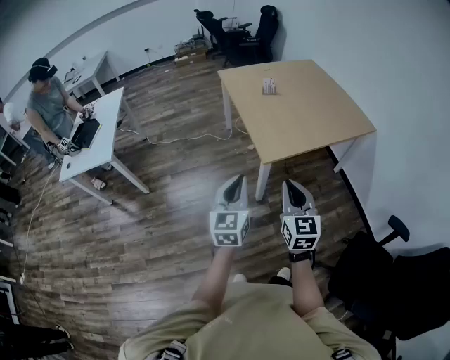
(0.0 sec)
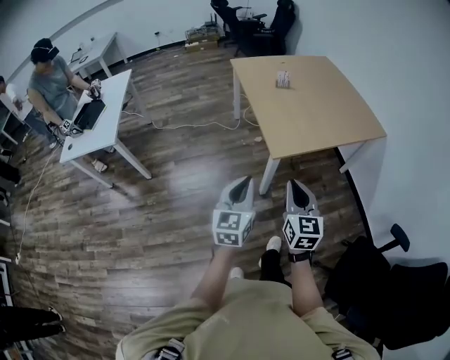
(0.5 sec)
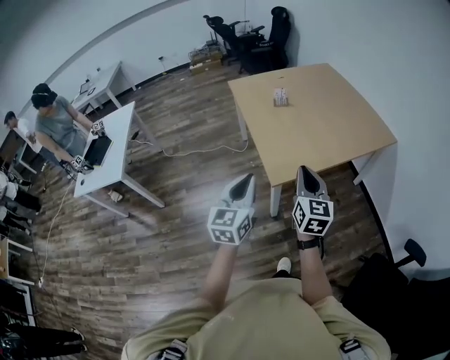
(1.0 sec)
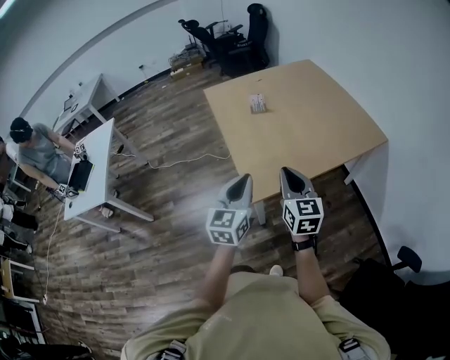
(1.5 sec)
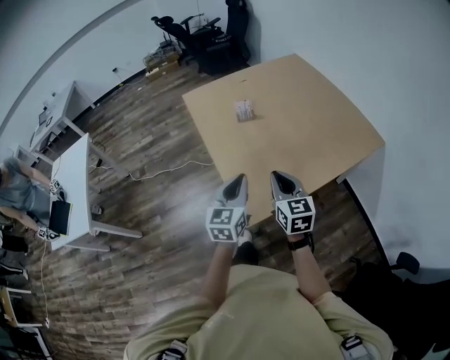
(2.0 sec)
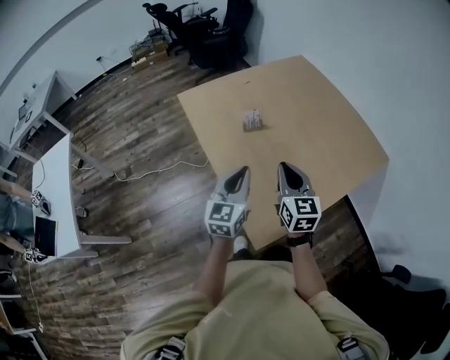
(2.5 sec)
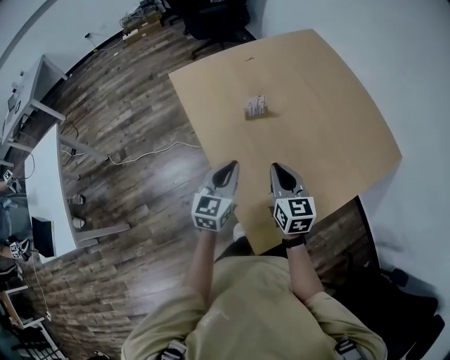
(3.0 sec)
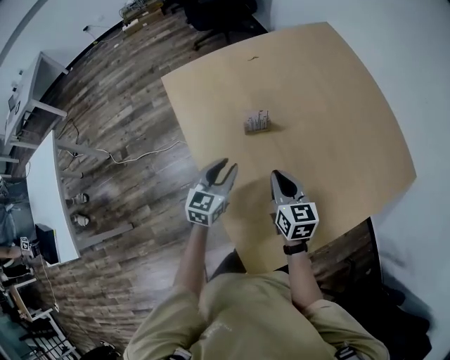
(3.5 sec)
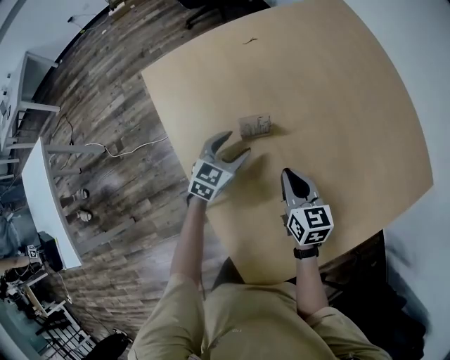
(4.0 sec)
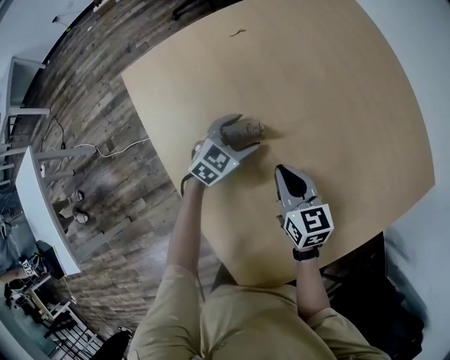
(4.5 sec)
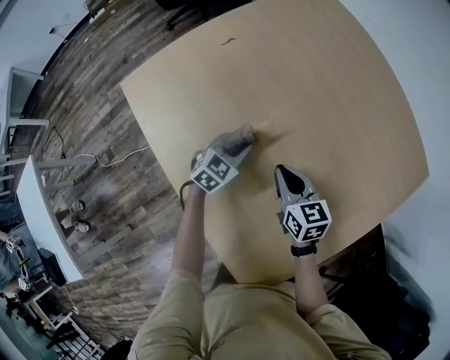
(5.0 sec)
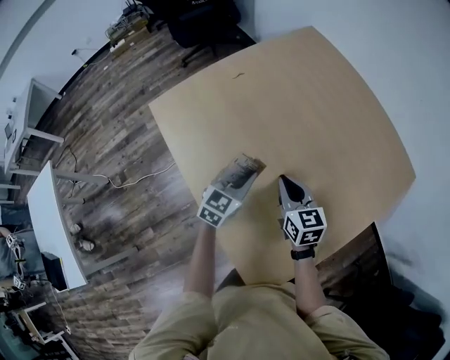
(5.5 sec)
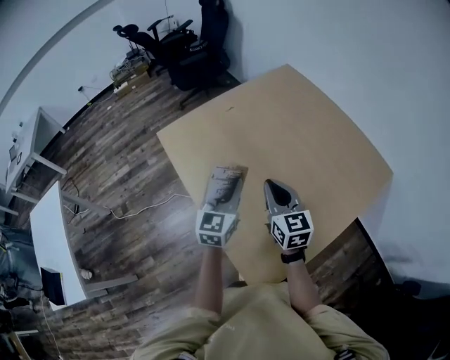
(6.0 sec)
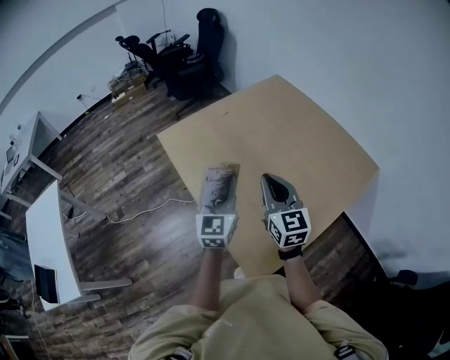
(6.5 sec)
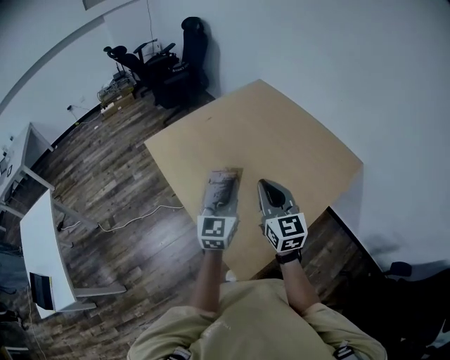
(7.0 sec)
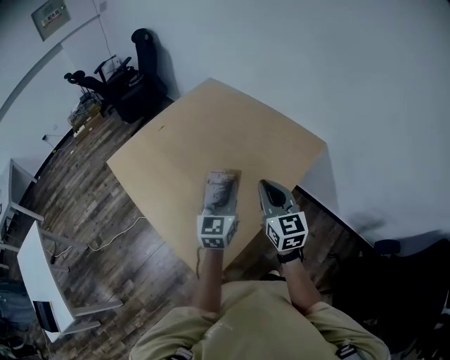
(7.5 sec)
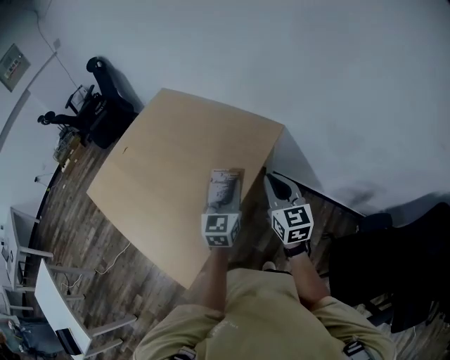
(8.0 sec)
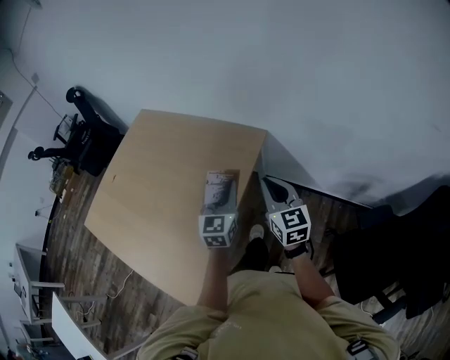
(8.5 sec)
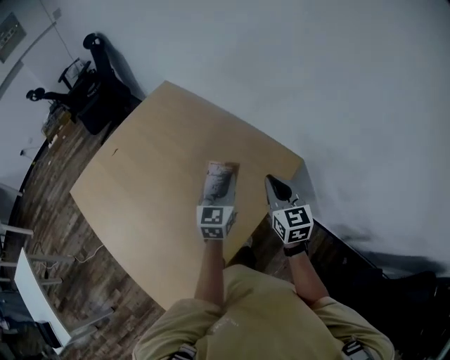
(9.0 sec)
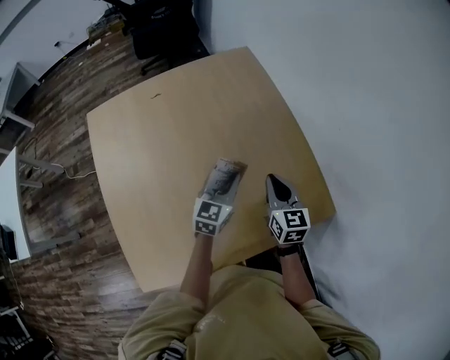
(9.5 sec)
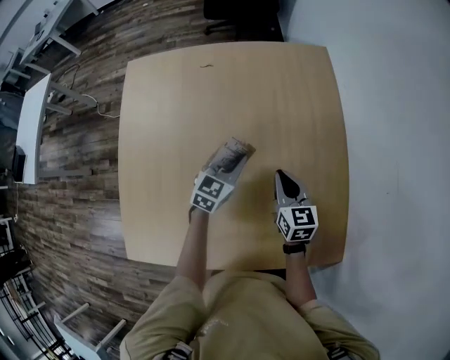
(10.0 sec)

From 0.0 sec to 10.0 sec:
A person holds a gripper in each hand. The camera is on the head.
From 0.0 sec to 2.0 sec: The two grippers travel together, forward, some 50 cm.
From 2.0 sec to 4.0 sec: The two grippers travel together, forward, roughly 50 cm. The grippers both shift downward by roughly 30 cm. The left gripper swivels about 30 degrees, and opens its fingers. Meanwhile the right gripper swivels roughly 20 degrees.
From 4.0 sec to 6.0 sec: The two grippers go some 30 cm upward and backward. The left gripper changes its angle by approximately 20 degrees, and closes. Meanwhile the right gripper turns by roughly 20 degrees.
From 6.0 sec to 8.0 sec: The pair of grippers is taken to the right, roughly 60 cm. The right gripper changes its angle by some 30 degrees.
From 8.0 sec to 10.0 sec: The two grippers travel together, some 50 cm. The right gripper rotates approximately 50 degrees; the left gripper rotates roughly 40 degrees.

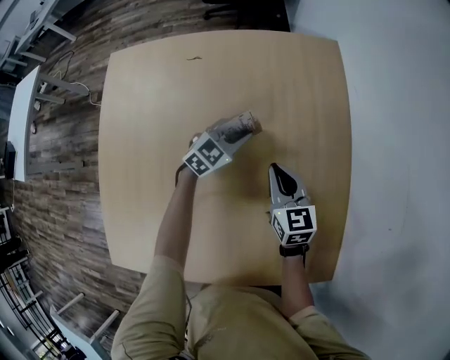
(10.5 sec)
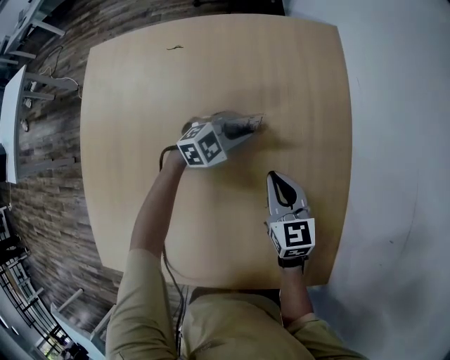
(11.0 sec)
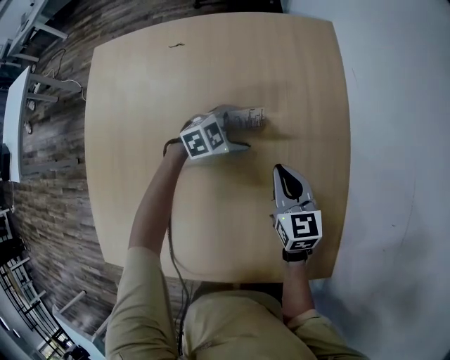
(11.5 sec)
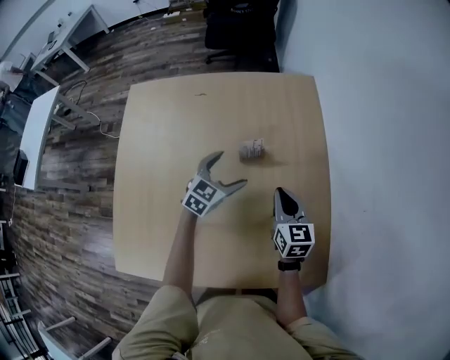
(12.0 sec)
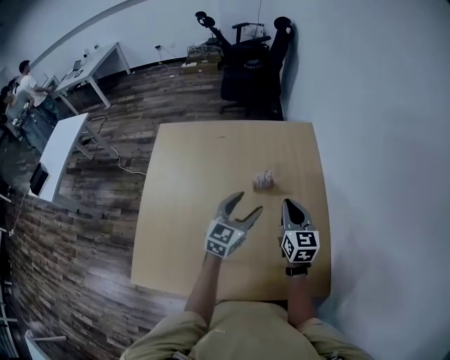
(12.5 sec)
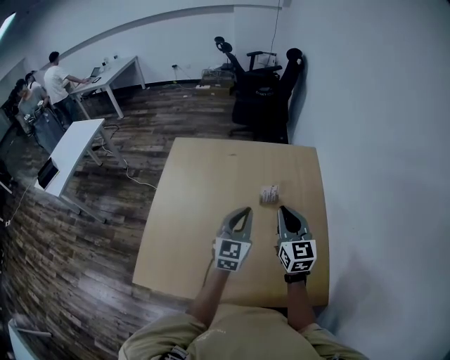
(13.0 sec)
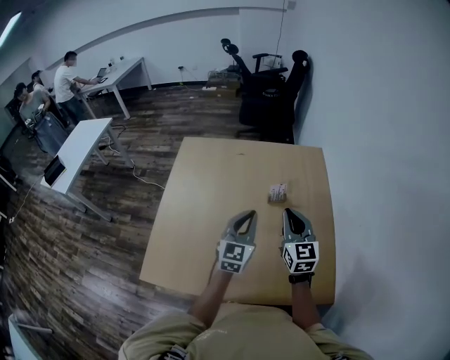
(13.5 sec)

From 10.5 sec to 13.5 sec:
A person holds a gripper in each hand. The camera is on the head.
From 10.5 sec to 12.0 sec: The right gripper goes approximately 10 cm to the right and upward. The left gripper heads upward and backward, covering approximately 10 cm, and opens its fingers.
From 12.0 sec to 13.5 sec: Both grippers travel together upward and backward, some 30 cm. The right gripper rotates roughly 20 degrees, while the left gripper changes its angle by some 30 degrees, and closes up.

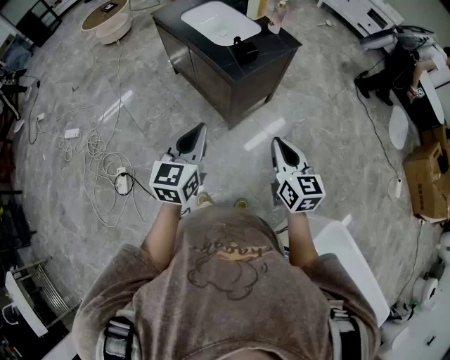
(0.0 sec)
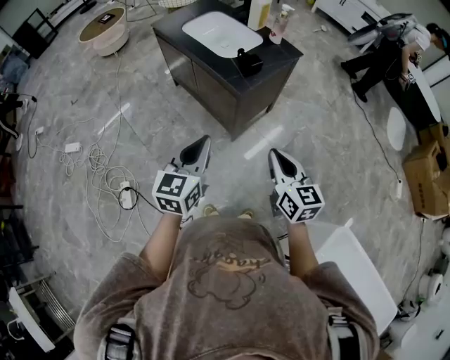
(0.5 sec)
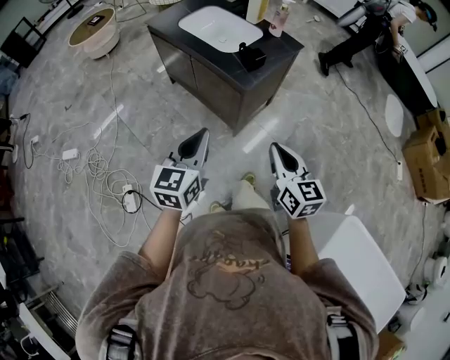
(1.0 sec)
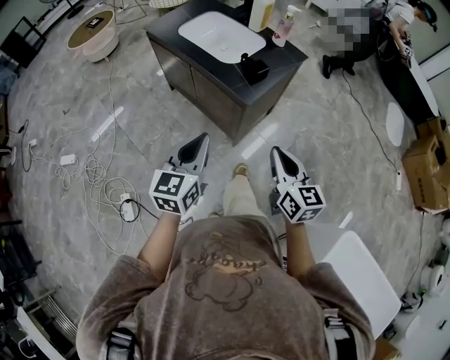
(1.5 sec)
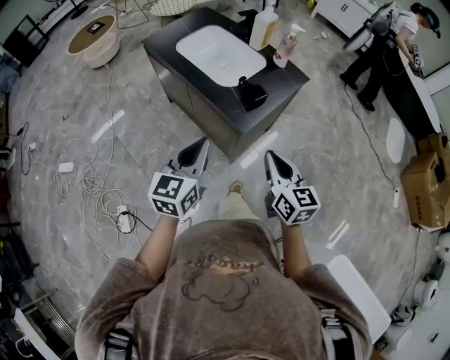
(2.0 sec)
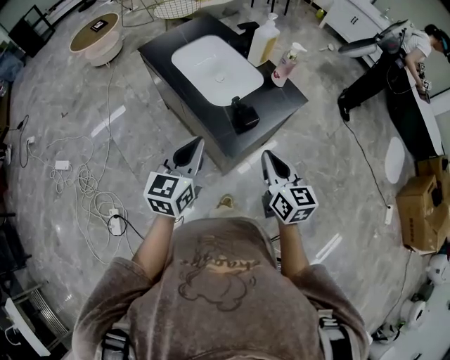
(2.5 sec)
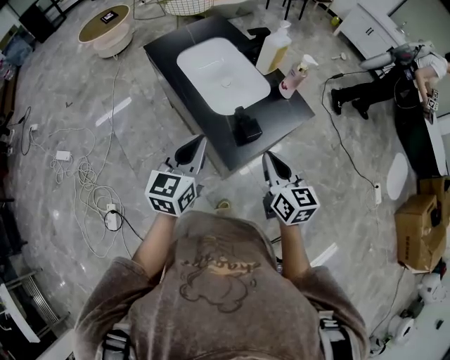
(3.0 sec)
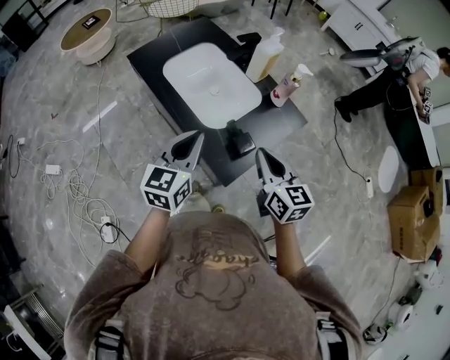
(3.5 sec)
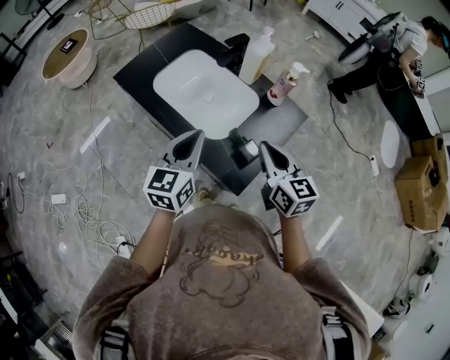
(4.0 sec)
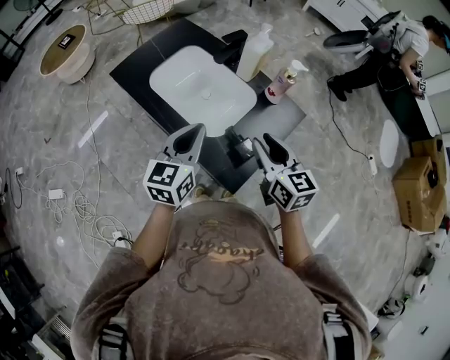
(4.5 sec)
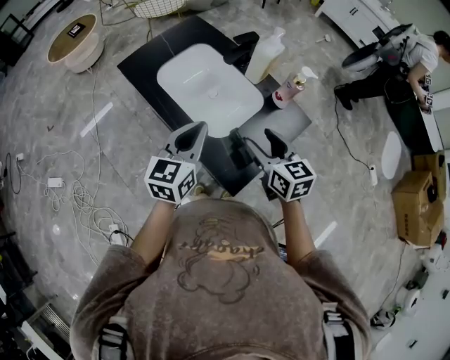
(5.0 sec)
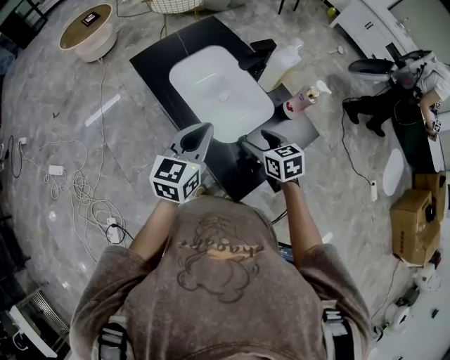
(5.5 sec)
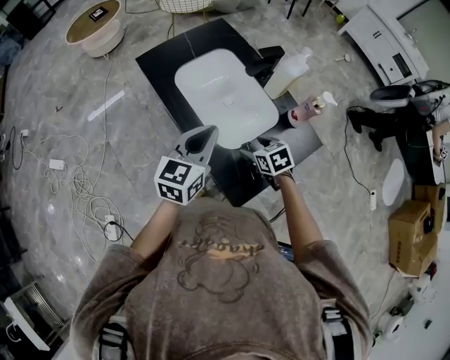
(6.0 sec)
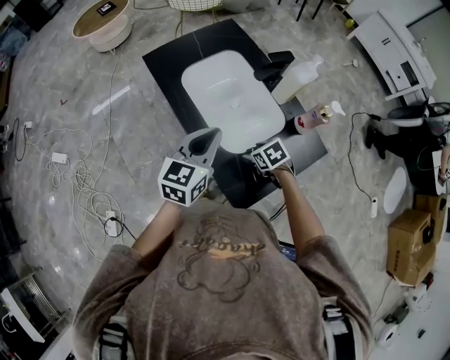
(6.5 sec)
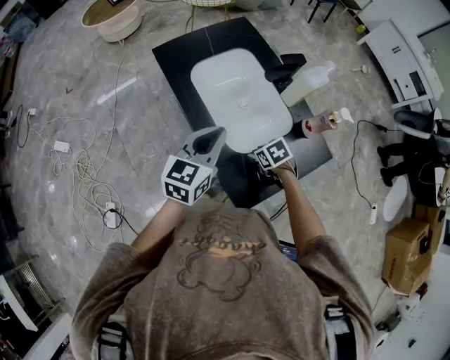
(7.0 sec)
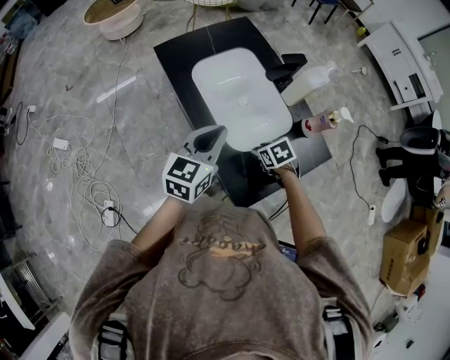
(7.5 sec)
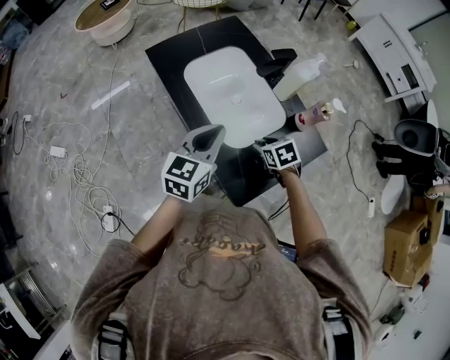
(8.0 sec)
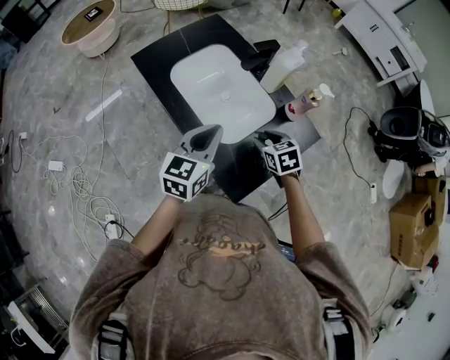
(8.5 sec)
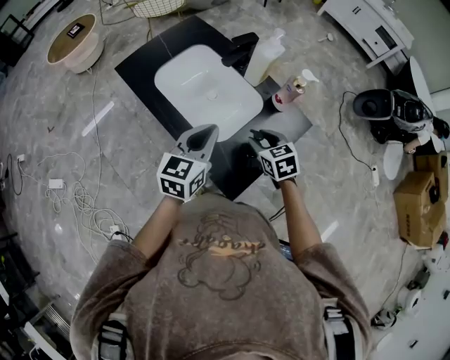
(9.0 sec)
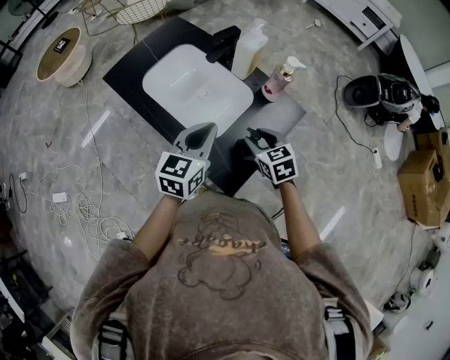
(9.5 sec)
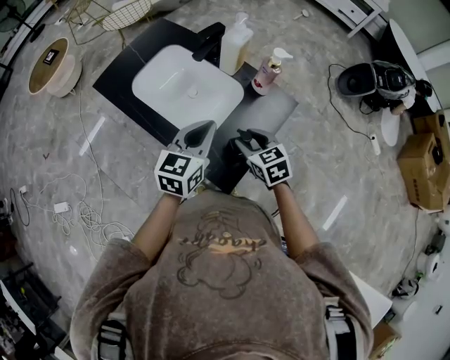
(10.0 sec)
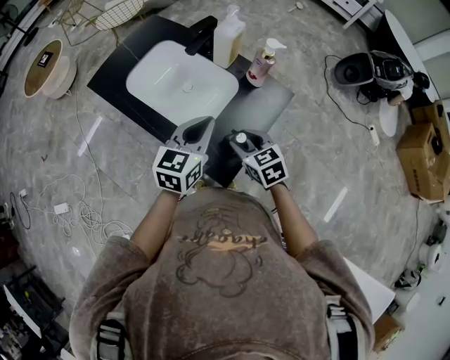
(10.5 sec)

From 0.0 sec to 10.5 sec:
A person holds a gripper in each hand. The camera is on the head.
From 0.0 sec to 2.0 sec: The left gripper shifts approximately 20 cm forward. The right gripper goes some 20 cm forward and to the left.
From 2.0 sec to 4.0 sec: Both grippers move forward, some 30 cm.
From 4.0 sec to 6.5 sec: The right gripper is displaced downward by about 25 cm, angles its fingers downward, by some 50 degrees, and opens up. Meanwhile the left gripper shifts by roughly 5 cm.
From 6.5 sec to 8.5 sec: The right gripper heads upward, covering some 10 cm, and swivels about 20 degrees.
From 8.5 sec to 10.5 sec: The left gripper moves to the right, approximately 10 cm. The right gripper goes roughly 10 cm backward.

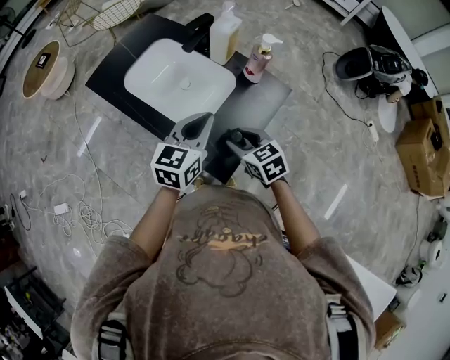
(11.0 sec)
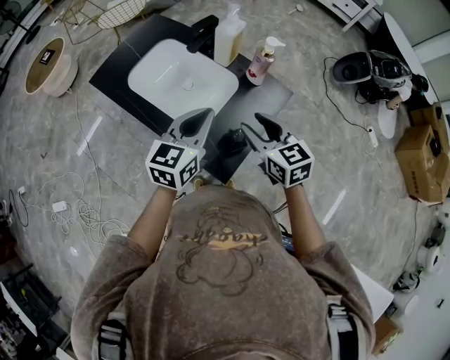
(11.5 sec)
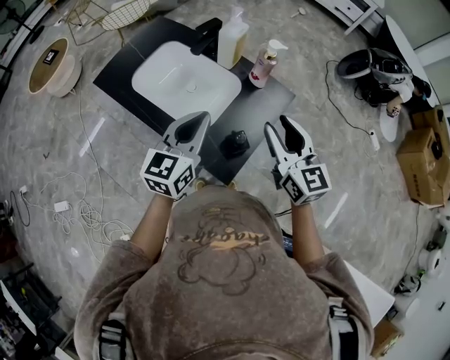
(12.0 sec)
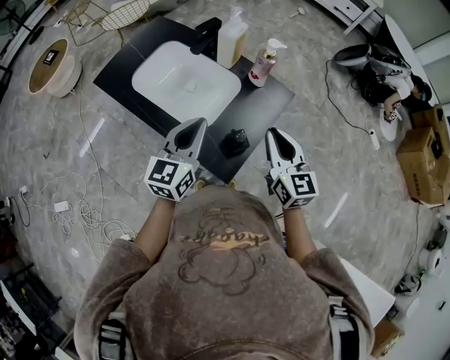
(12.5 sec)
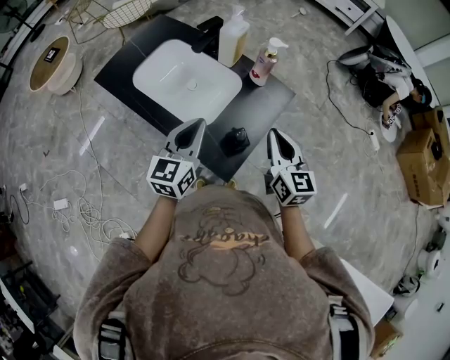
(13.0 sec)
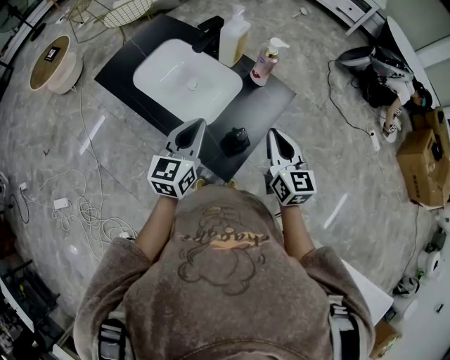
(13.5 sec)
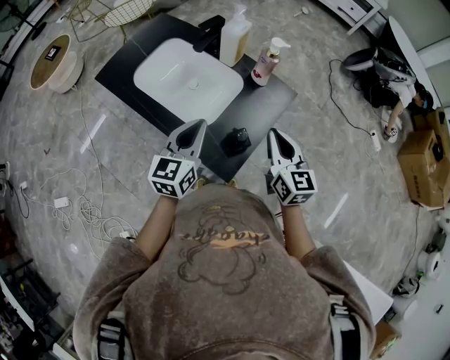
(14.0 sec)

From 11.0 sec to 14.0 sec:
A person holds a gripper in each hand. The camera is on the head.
From 11.0 sec to 12.5 sec: The right gripper shifts about 15 cm upward and to the right, swivels roughly 40 degrees, and closes up. The left gripper shifts by approximately 5 cm.
From 12.5 sec to 14.0 sec: The grippers stay close to where they were, moving slightly.
